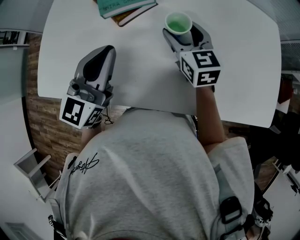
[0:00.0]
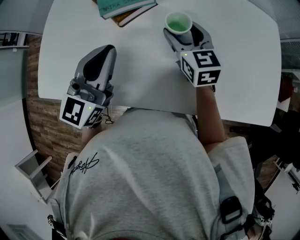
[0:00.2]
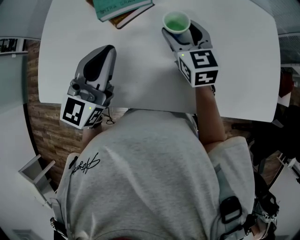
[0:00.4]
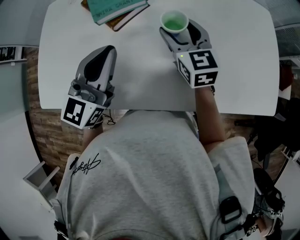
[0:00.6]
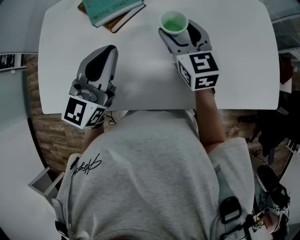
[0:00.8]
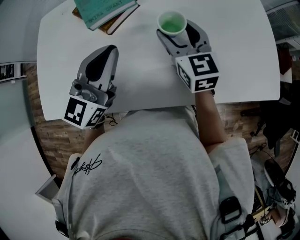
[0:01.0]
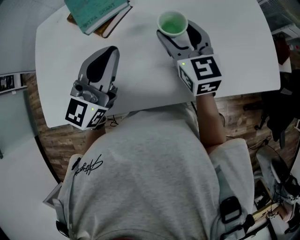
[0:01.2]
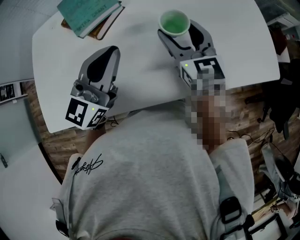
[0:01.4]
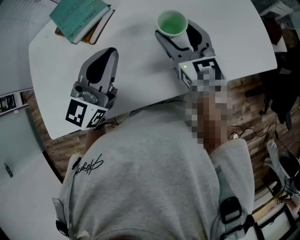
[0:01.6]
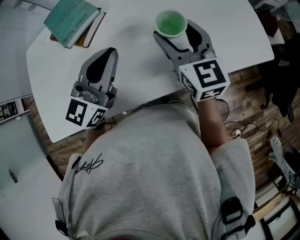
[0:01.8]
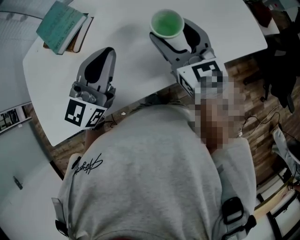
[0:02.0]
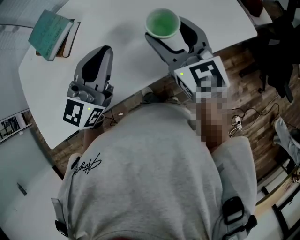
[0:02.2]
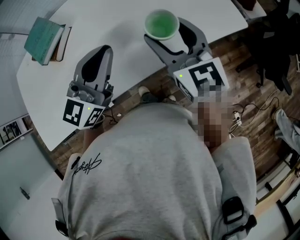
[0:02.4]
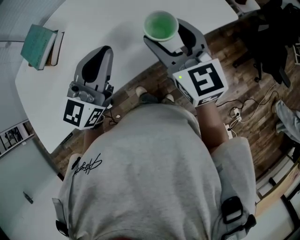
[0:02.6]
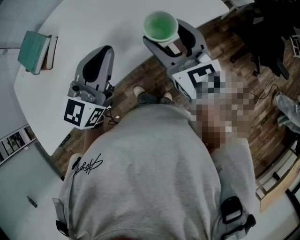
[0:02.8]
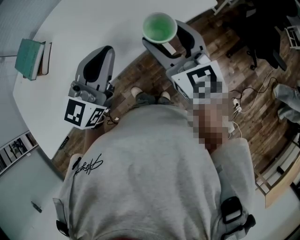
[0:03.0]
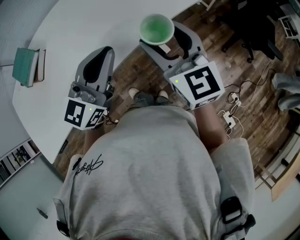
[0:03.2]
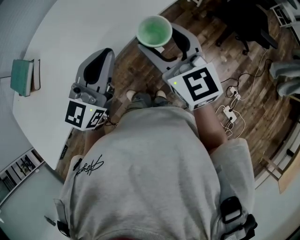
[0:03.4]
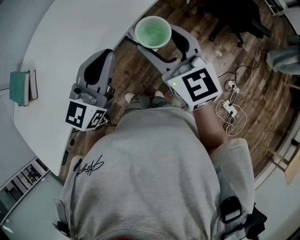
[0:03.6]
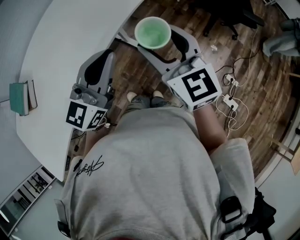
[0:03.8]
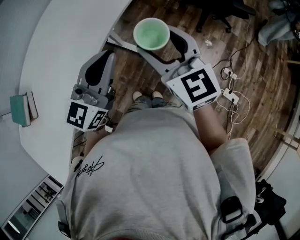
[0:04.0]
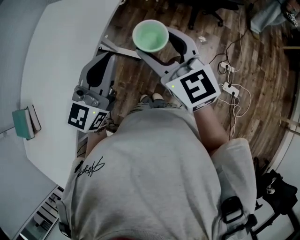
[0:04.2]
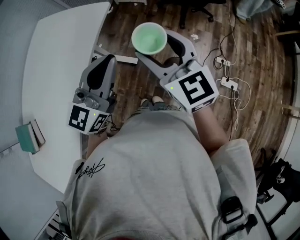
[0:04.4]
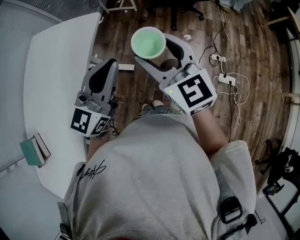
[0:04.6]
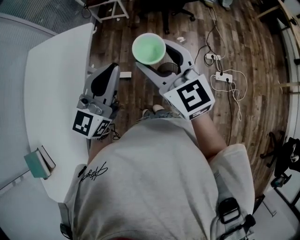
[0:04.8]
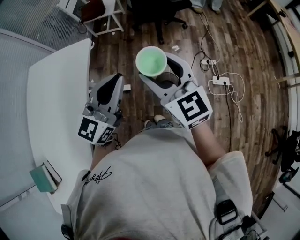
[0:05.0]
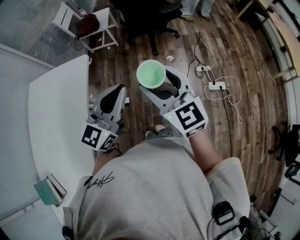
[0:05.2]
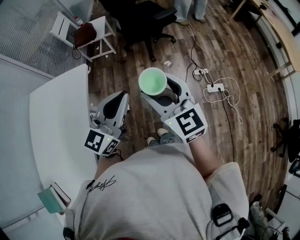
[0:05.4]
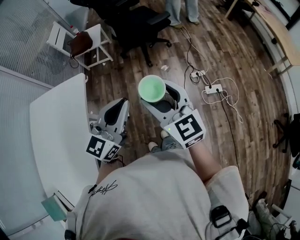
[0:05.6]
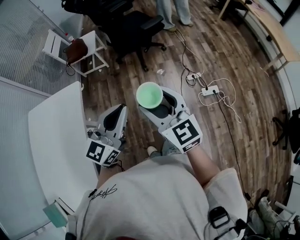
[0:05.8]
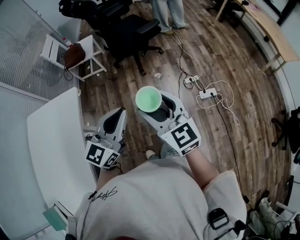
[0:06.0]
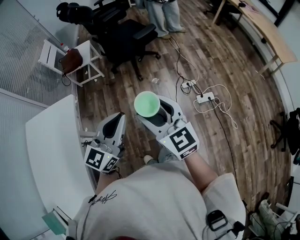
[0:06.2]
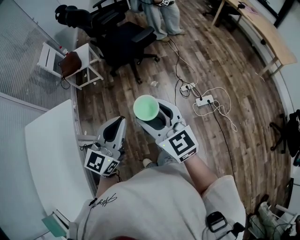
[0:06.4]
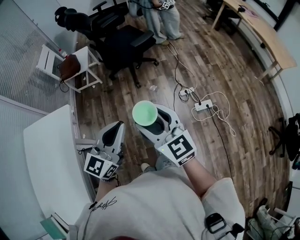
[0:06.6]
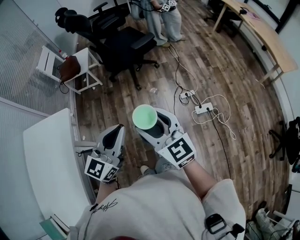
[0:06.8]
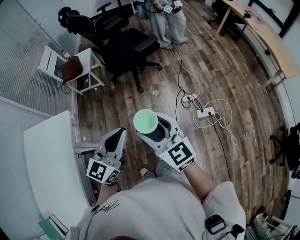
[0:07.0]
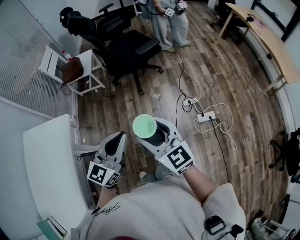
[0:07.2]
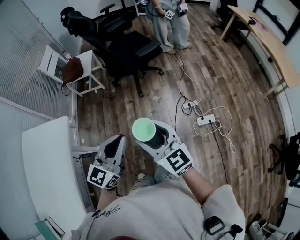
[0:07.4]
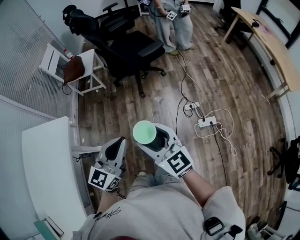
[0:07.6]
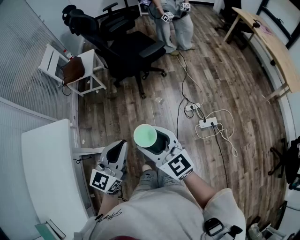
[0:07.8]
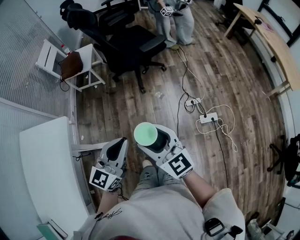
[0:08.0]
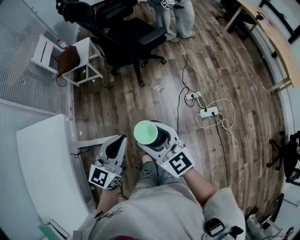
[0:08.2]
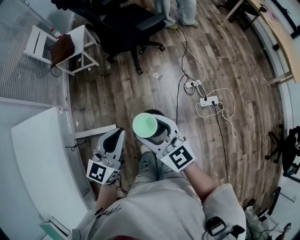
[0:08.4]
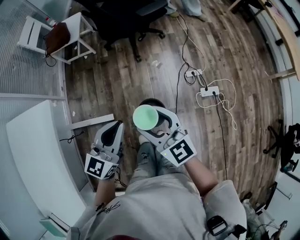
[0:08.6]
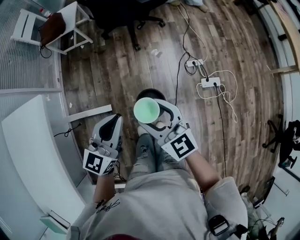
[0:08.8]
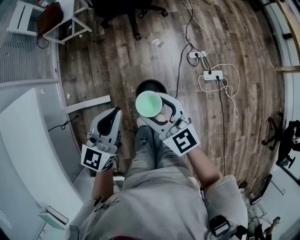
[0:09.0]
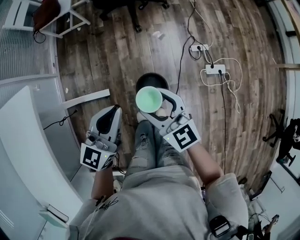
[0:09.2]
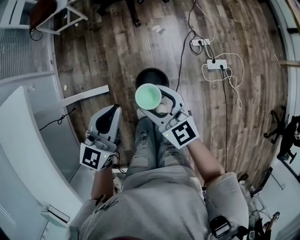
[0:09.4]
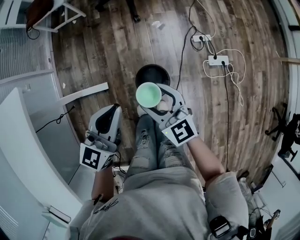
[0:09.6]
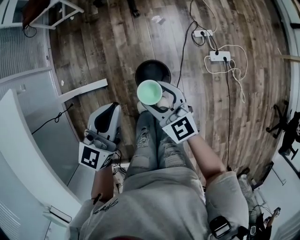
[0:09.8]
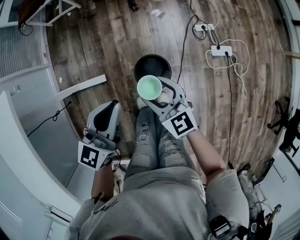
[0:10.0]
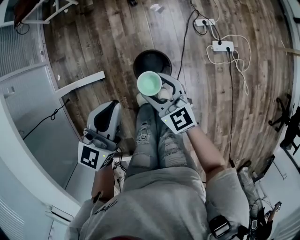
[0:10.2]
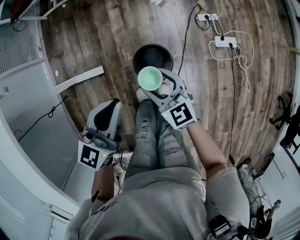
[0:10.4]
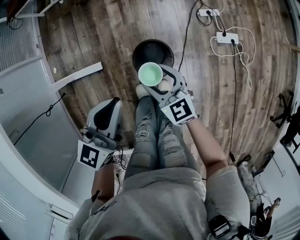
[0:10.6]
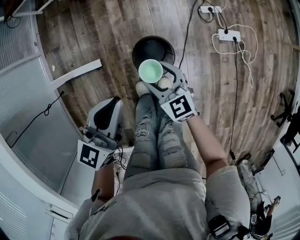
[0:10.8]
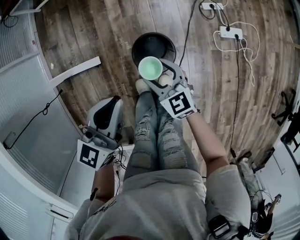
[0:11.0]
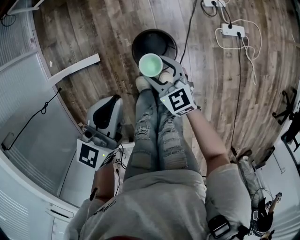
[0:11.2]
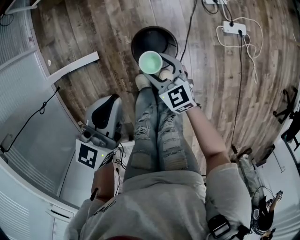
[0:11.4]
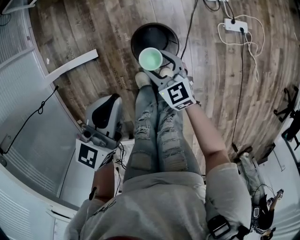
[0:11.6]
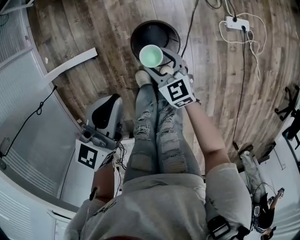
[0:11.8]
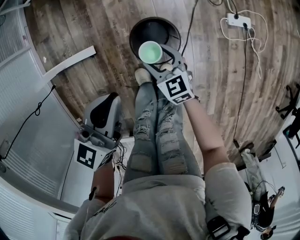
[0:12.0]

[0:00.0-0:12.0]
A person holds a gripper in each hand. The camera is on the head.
0:00.0 to 0:01.6: The left gripper is displaced to the right by approximately 5 cm, and turns by about 30 degrees, while the right gripper moves to the right, backward and upward, some 10 cm, and changes its angle by some 20 degrees.
0:01.6 to 0:03.0: The right gripper is displaced to the right and backward by approximately 30 cm; the left gripper travels to the right by about 25 cm, and rotates roughly 20 degrees.
0:03.0 to 0:04.4: The left gripper moves roughly 25 cm, and turns by some 40 degrees. The right gripper ends up about 25 cm from where it was, and changes its angle by some 30 degrees.
0:04.4 to 0:06.0: The right gripper changes place by about 15 cm, and rotates roughly 30 degrees. The left gripper changes place by approximately 15 cm, and changes its angle by approximately 30 degrees.
0:06.0 to 0:07.6: The two grippers go about 10 cm forward and downward.
0:07.6 to 0:09.0: The left gripper goes about 15 cm downward and to the left; the right gripper moves downward, approximately 15 cm.
0:09.0 to 0:10.4: The right gripper shifts some 20 cm downward. The left gripper moves downward, about 10 cm.
0:10.4 to 0:12.0: The right gripper heads downward, covering roughly 20 cm. The left gripper shifts about 10 cm downward.

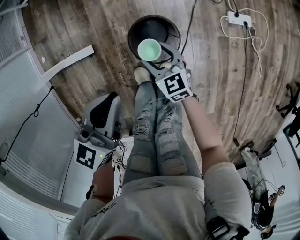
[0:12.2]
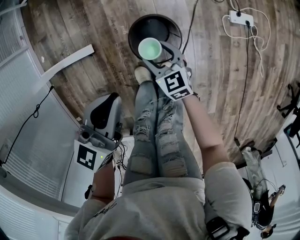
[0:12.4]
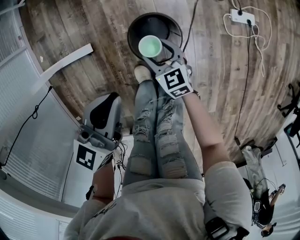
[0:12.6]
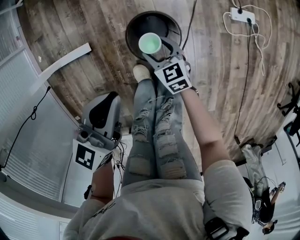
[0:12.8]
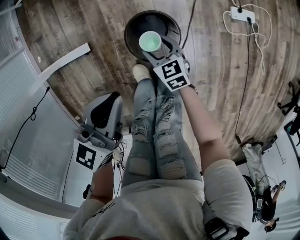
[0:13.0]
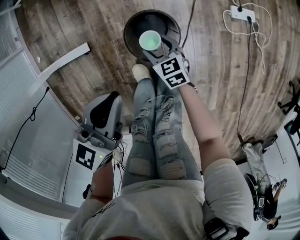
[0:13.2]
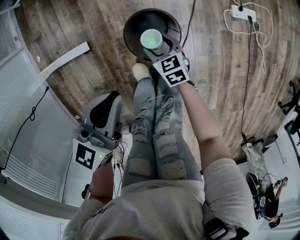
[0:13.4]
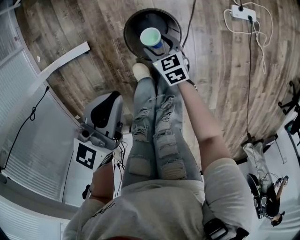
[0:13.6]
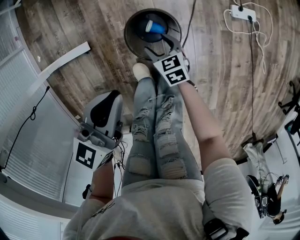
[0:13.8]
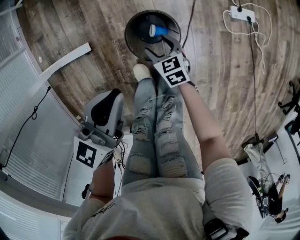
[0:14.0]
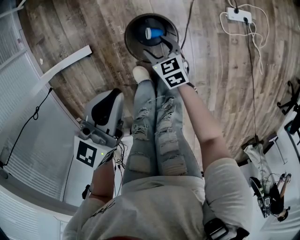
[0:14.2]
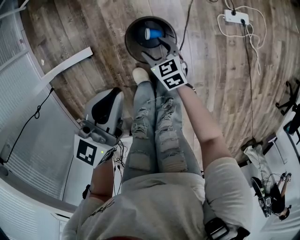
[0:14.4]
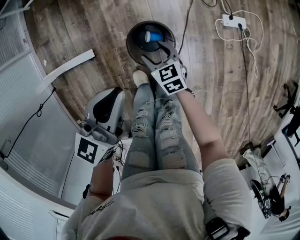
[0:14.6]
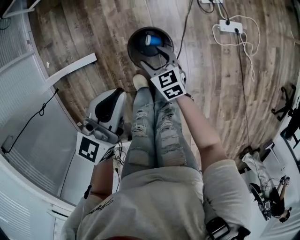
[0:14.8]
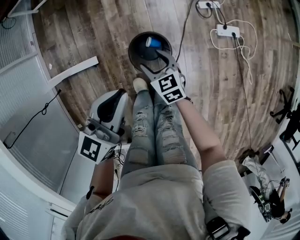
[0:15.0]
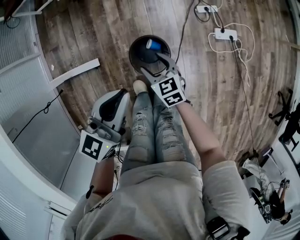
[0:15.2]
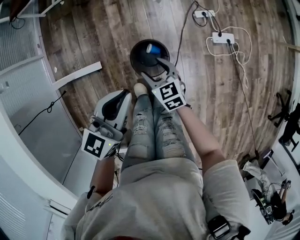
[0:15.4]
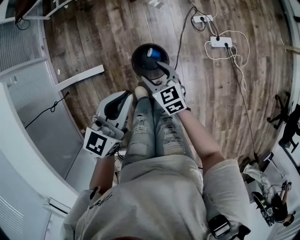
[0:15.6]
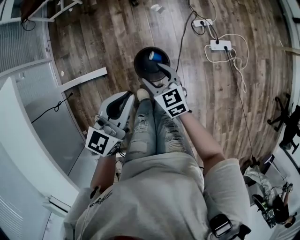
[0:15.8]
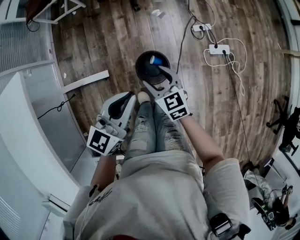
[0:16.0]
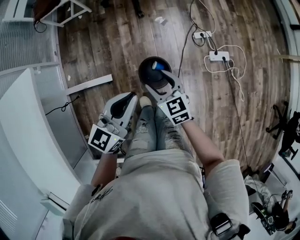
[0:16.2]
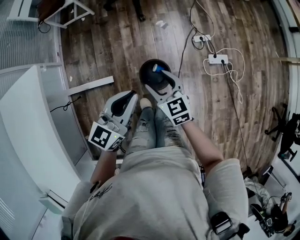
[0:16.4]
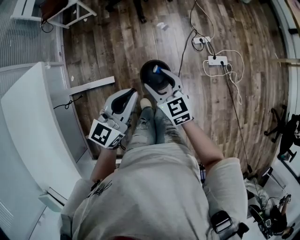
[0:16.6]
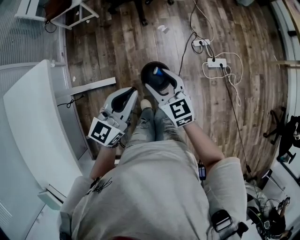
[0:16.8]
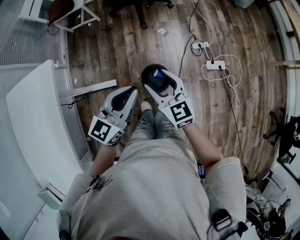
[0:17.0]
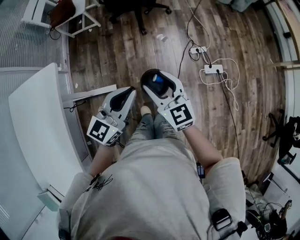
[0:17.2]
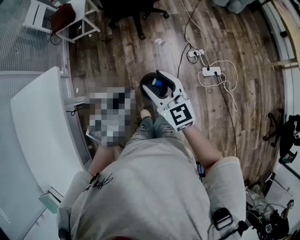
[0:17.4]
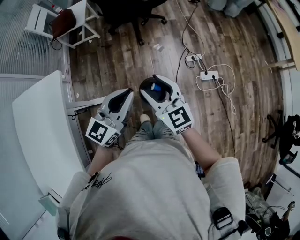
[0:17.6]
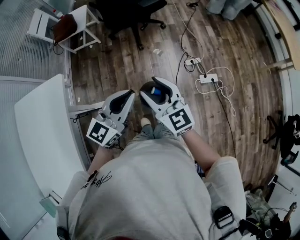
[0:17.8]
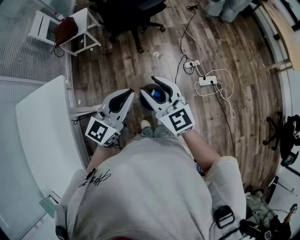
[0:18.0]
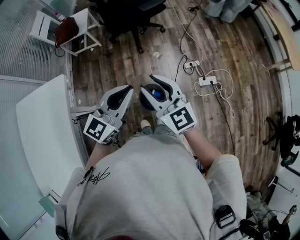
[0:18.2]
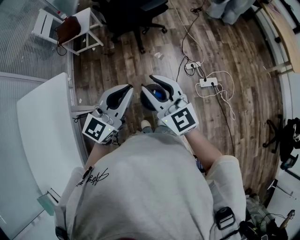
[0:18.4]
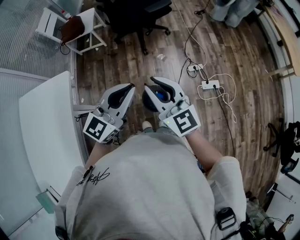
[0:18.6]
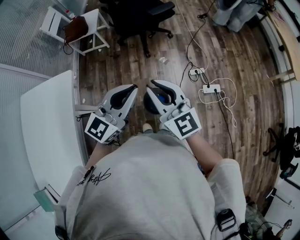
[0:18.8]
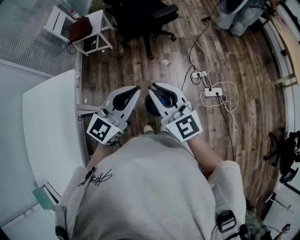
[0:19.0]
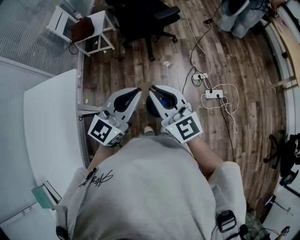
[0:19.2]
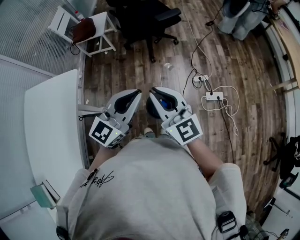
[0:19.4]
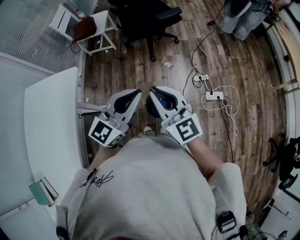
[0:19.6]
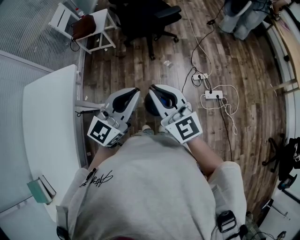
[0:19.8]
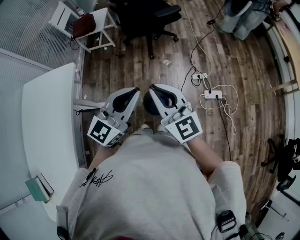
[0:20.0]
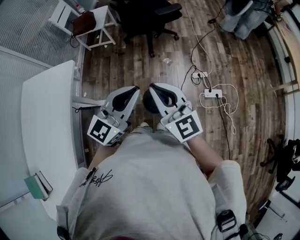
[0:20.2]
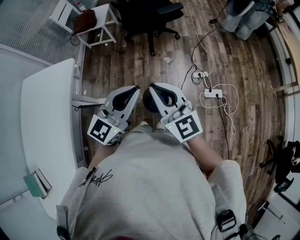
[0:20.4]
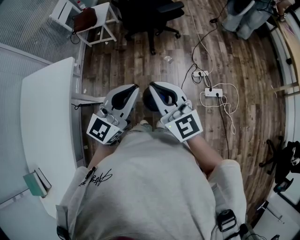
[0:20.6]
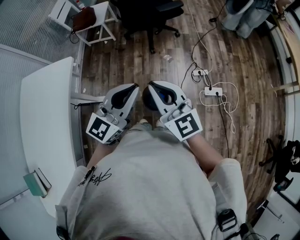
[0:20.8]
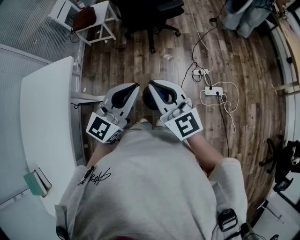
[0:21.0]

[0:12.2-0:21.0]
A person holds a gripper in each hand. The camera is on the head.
0:12.2 to 0:13.6: The right gripper moves downward, about 10 cm.
0:13.6 to 0:15.2: The left gripper goes about 10 cm upward. The right gripper goes about 20 cm upward.
0:15.2 to 0:16.6: The right gripper is displaced upward by about 25 cm. Meanwhile the left gripper moves upward, about 15 cm.
0:16.6 to 0:18.0: The left gripper travels upward by approximately 15 cm. The right gripper moves upward, about 20 cm.
0:18.0 to 0:19.6: The right gripper travels upward by roughly 5 cm, and closes up; the left gripper changes place by approximately 5 cm.
0:19.6 to 0:21.0: The grippers make only small movements.

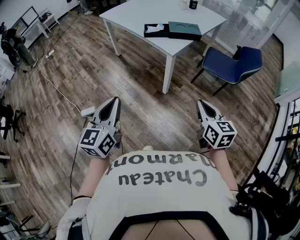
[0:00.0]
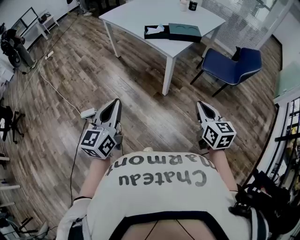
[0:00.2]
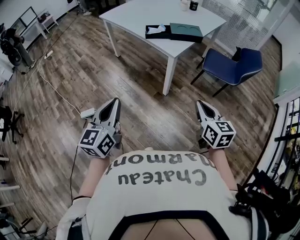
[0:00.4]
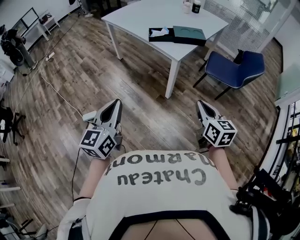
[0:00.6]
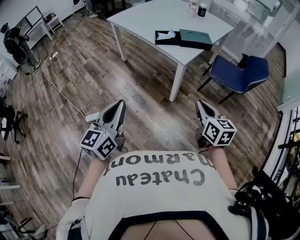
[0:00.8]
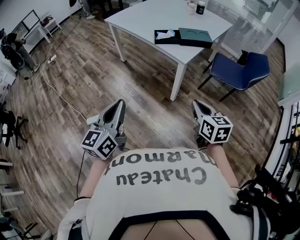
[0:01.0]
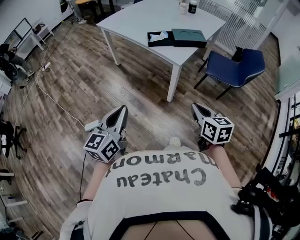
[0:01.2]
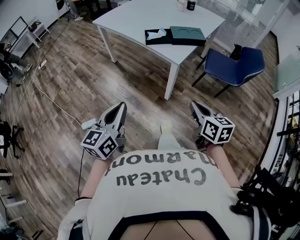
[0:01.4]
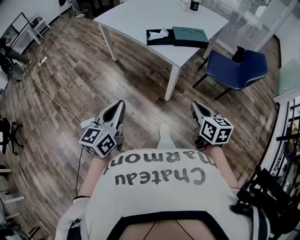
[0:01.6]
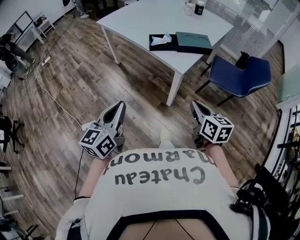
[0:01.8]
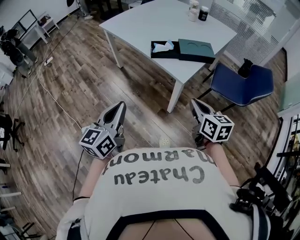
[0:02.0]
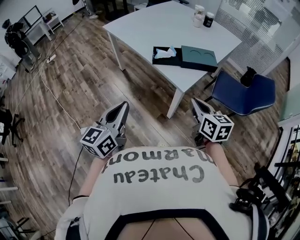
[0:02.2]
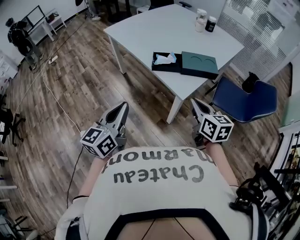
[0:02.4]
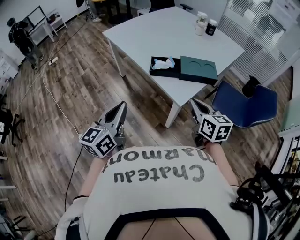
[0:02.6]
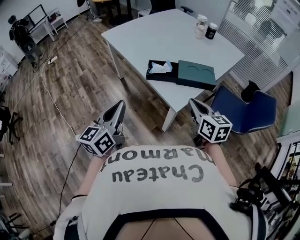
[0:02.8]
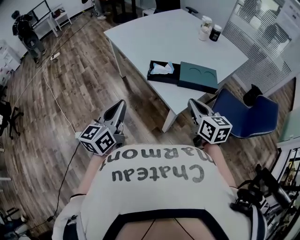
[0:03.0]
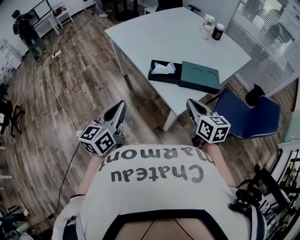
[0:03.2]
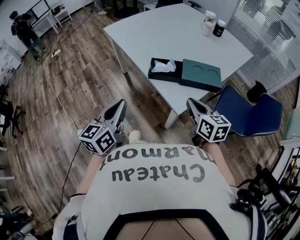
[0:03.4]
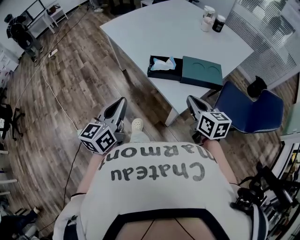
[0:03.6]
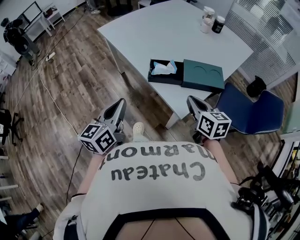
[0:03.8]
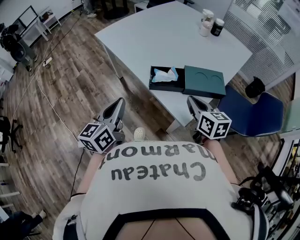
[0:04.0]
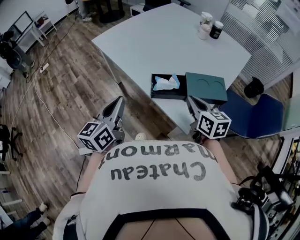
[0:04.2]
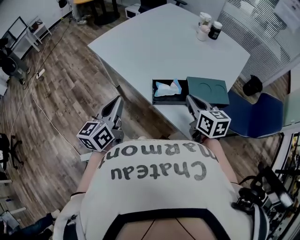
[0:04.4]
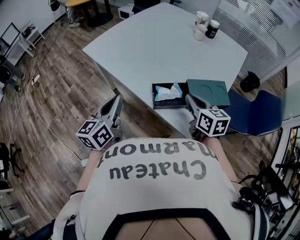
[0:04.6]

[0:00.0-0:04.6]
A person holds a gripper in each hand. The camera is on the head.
0:00.0 to 0:01.6: The right gripper heads forward and to the left, covering roughly 15 cm. The left gripper is displaced forward by some 10 cm.
0:01.6 to 0:03.0: The two grippers go some 25 cm forward.
0:03.0 to 0:04.6: Both grippers move forward, approximately 20 cm.
